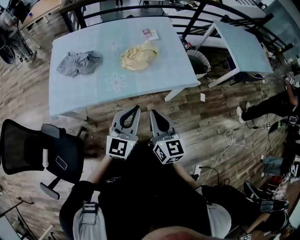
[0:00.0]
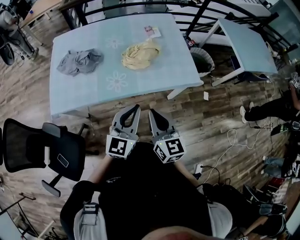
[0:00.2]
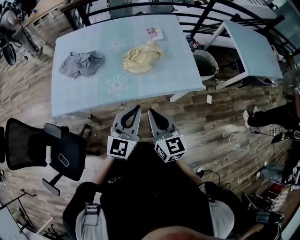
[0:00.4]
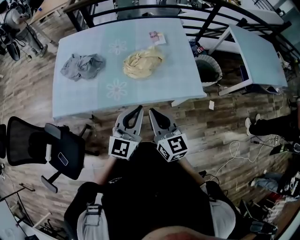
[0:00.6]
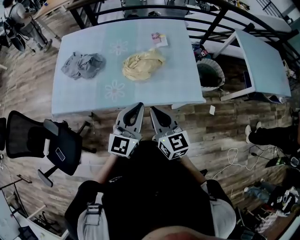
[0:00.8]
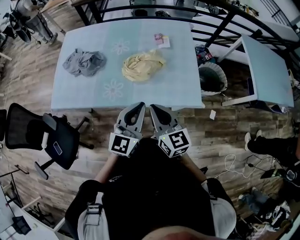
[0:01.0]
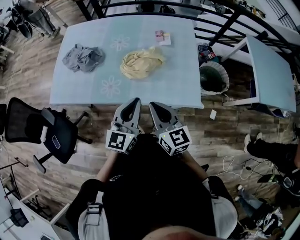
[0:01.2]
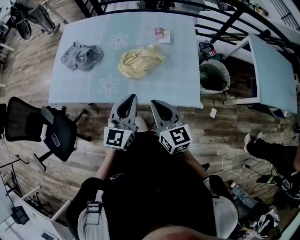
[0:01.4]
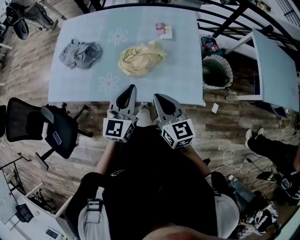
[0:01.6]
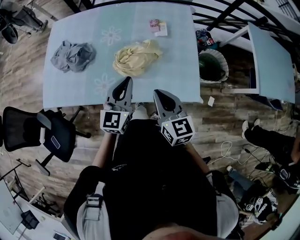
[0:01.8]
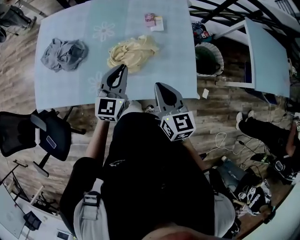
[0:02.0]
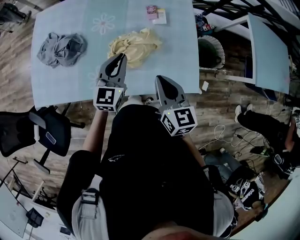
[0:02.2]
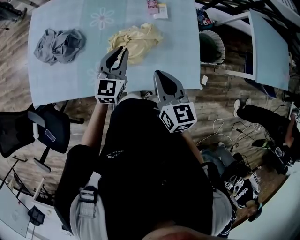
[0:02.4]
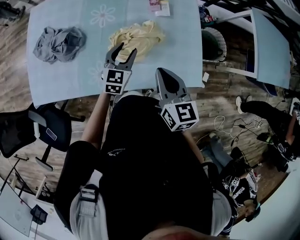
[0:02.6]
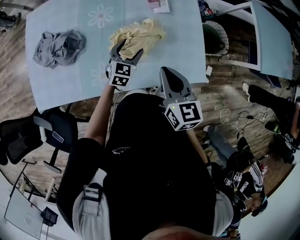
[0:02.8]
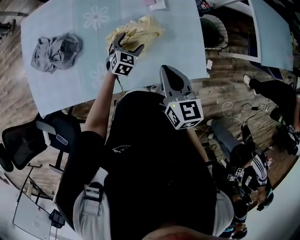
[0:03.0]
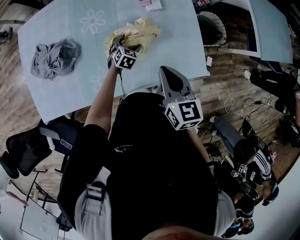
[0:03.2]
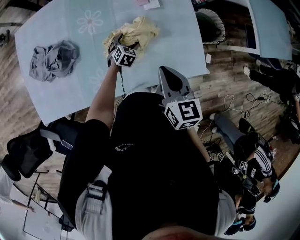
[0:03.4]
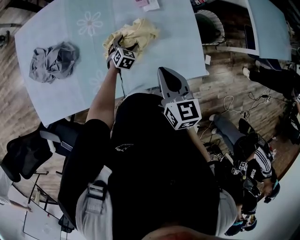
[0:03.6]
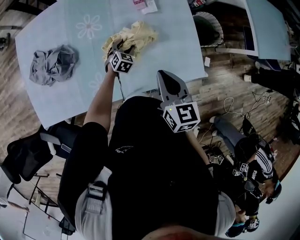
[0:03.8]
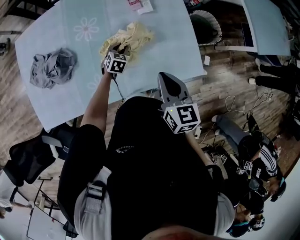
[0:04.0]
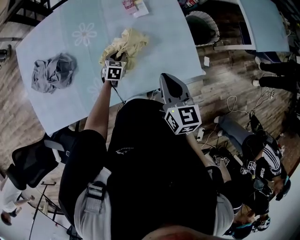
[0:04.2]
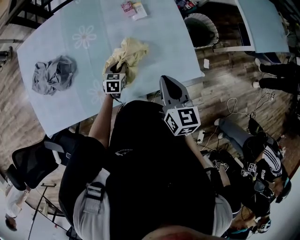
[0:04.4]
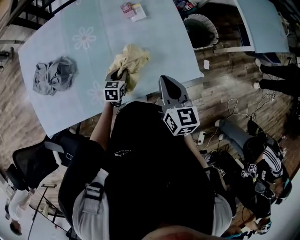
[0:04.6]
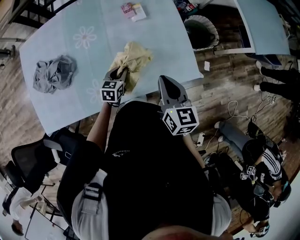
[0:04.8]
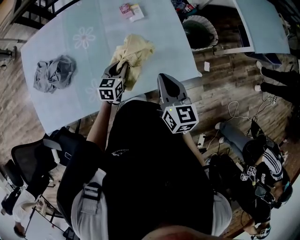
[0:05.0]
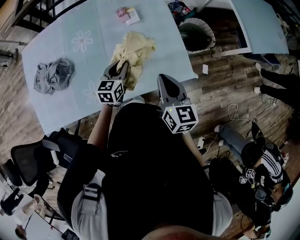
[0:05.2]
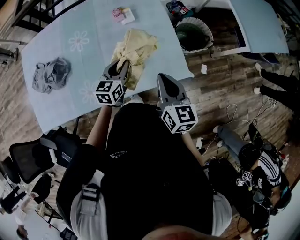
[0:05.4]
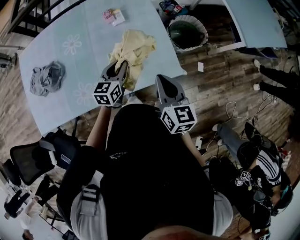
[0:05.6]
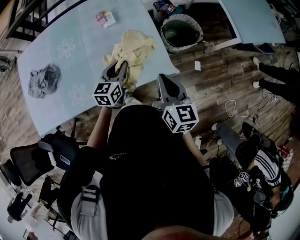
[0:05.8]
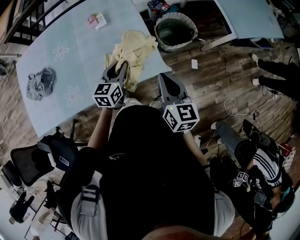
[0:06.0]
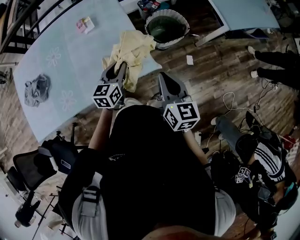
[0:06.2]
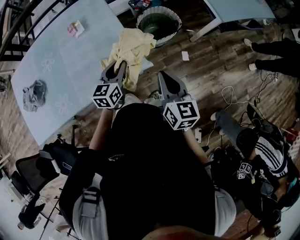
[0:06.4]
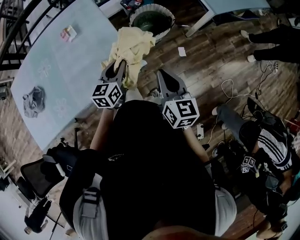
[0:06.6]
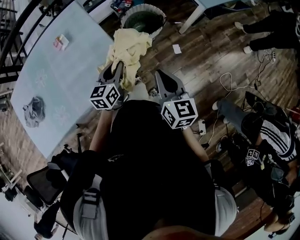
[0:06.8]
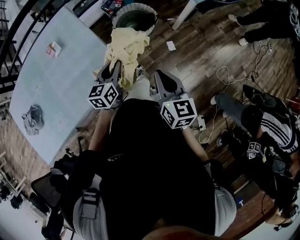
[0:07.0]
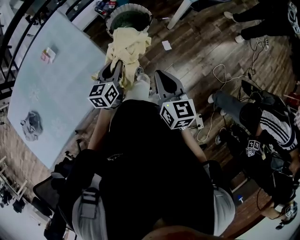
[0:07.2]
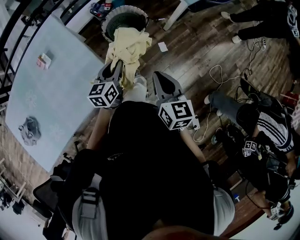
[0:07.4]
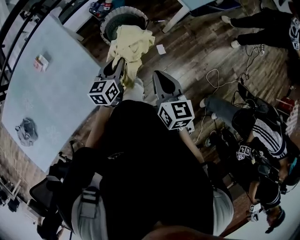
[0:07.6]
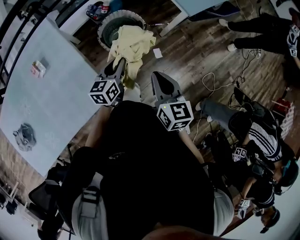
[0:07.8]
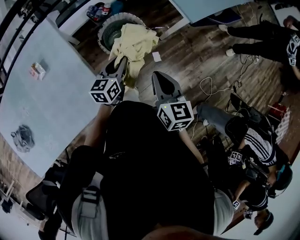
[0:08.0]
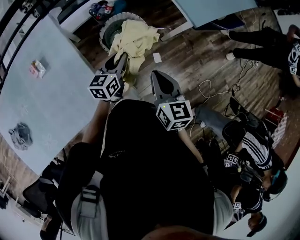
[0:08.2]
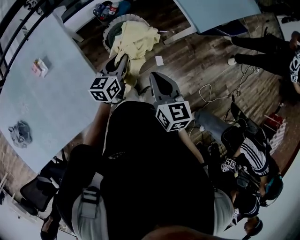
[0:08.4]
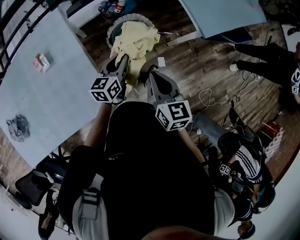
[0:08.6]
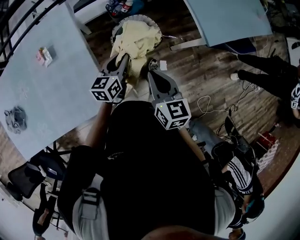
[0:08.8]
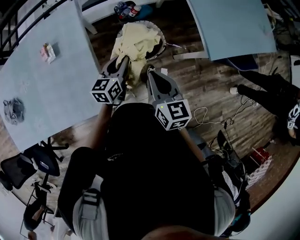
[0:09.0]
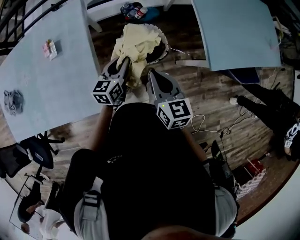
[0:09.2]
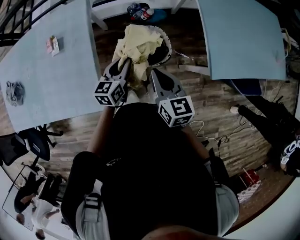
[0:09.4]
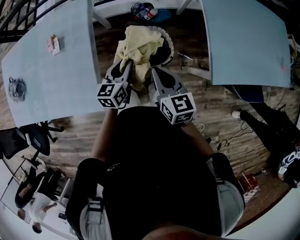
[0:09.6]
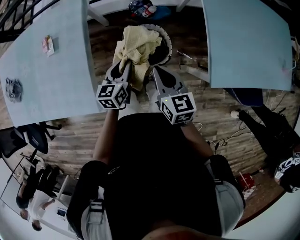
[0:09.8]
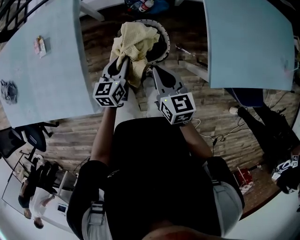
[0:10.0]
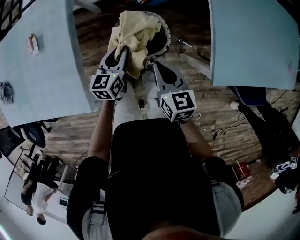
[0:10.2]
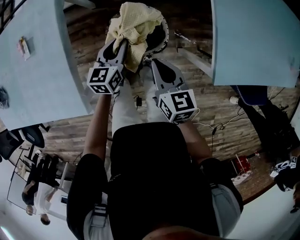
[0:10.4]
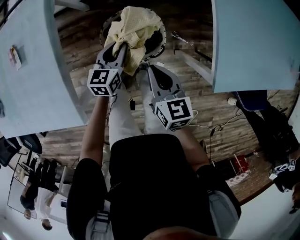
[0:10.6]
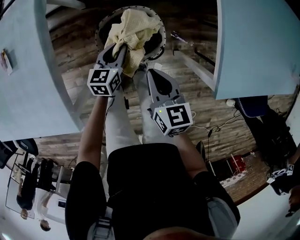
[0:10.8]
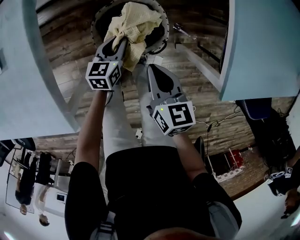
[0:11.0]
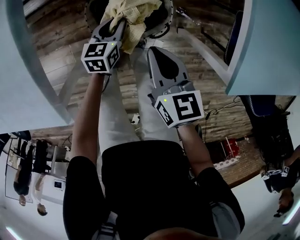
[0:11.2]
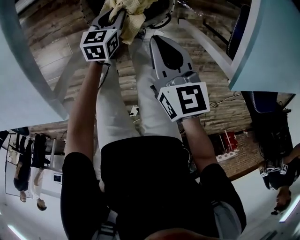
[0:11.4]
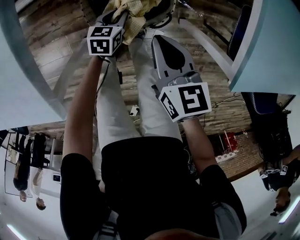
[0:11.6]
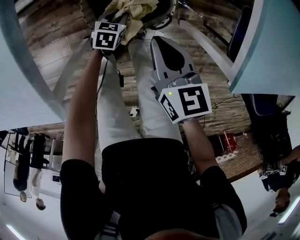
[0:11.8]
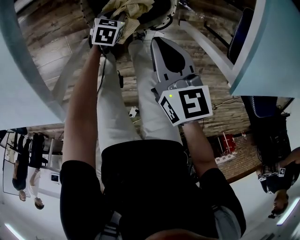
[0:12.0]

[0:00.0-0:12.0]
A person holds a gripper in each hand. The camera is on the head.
0:00.0 to 0:01.6: The two grippers go approximately 25 cm forward and to the right. The right gripper rotates approximately 30 degrees; the left gripper swivels roughly 20 degrees.
0:01.6 to 0:03.0: The right gripper is displaced forward by some 10 cm, and turns by about 20 degrees. The left gripper heads downward and forward, covering some 35 cm, points its fingers approximately 30 degrees further downward, and opens up.
0:03.0 to 0:04.4: The left gripper shifts some 5 cm downward and backward, and closes, while the right gripper is displaced to the right by about 5 cm.
0:04.4 to 0:06.0: The left gripper goes approximately 30 cm to the right and upward, and changes its angle by roughly 20 degrees, while the right gripper moves to the right, approximately 25 cm.
0:06.0 to 0:07.6: The right gripper shifts roughly 25 cm to the right. Meanwhile the left gripper moves to the right and forward, about 30 cm.
0:07.6 to 0:09.0: The two grippers go about 20 cm forward. The left gripper turns by about 20 degrees. The right gripper changes its angle by some 30 degrees.
0:09.0 to 0:10.4: The right gripper shifts roughly 25 cm downward, forward and to the right. Meanwhile the left gripper is displaced forward, downward and to the right by approximately 20 cm.
0:10.4 to 0:12.0: The left gripper heads downward, covering approximately 35 cm, and tips its fingers downward by approximately 30 degrees. The right gripper shifts approximately 15 cm downward.

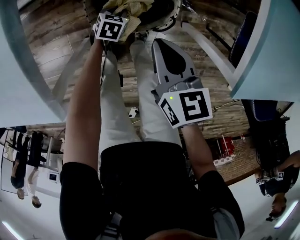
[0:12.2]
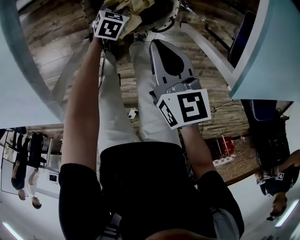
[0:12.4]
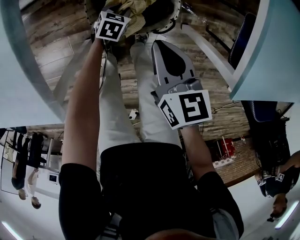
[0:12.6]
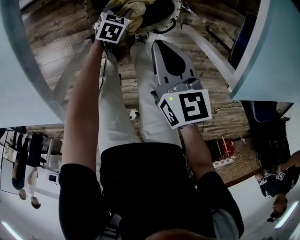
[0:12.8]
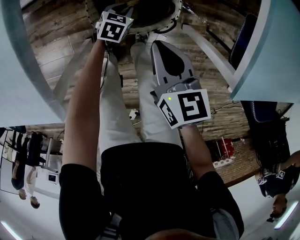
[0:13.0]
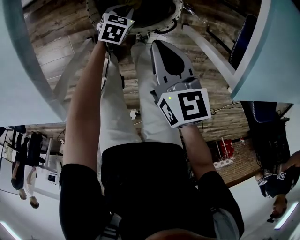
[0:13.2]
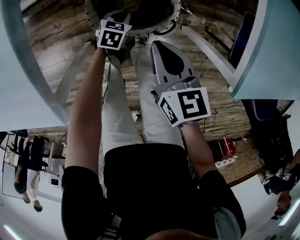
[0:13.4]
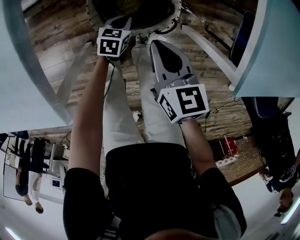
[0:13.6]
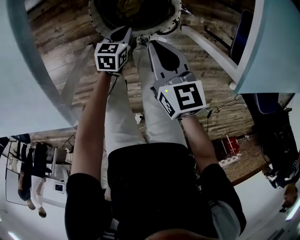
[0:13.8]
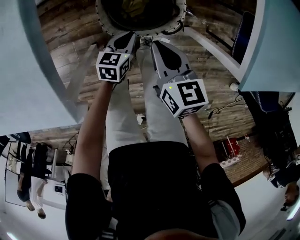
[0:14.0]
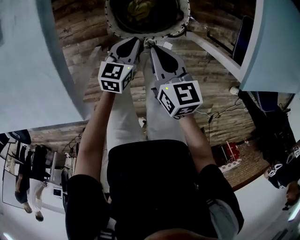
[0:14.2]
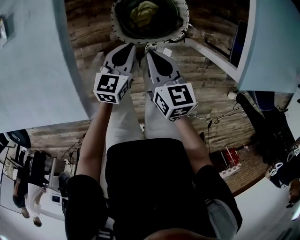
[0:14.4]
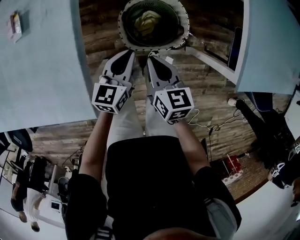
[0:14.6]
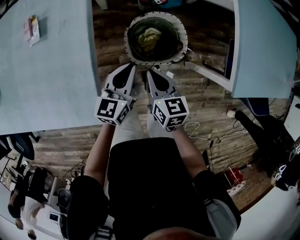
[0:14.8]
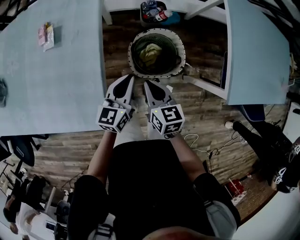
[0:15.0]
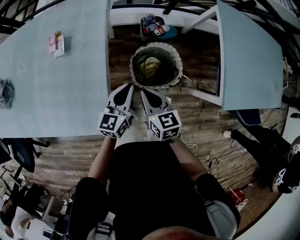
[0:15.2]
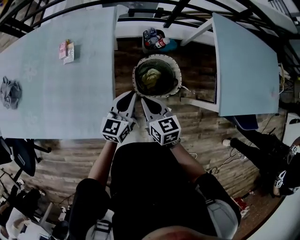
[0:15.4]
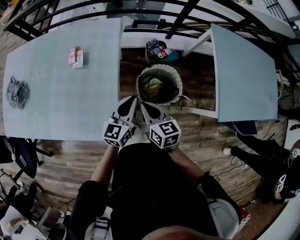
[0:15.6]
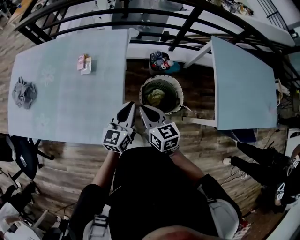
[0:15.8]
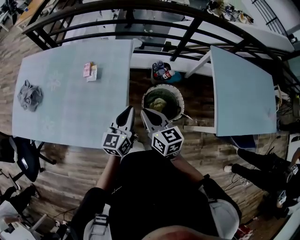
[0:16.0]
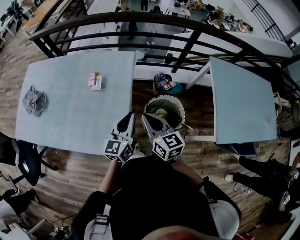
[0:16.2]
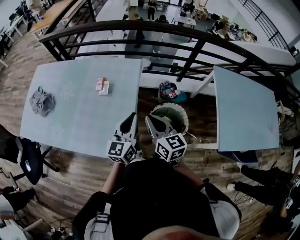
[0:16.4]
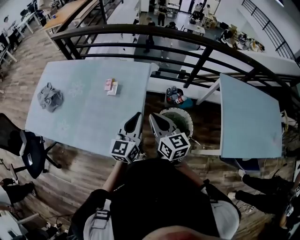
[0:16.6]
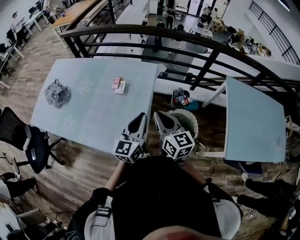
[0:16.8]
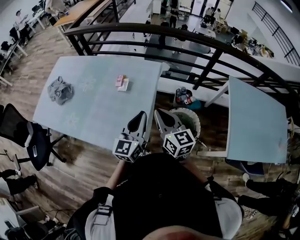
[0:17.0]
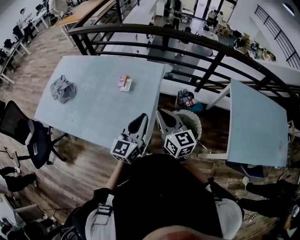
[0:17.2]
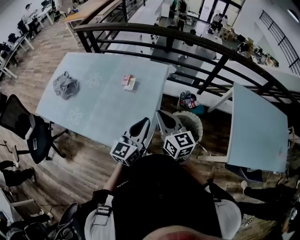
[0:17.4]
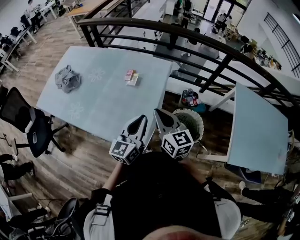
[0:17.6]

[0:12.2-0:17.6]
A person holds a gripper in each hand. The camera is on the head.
0:12.2 to 0:13.6: The grippers make only small movements.
0:13.6 to 0:15.0: The left gripper shifts approximately 40 cm upward and to the left, and points its fingers roughly 40 degrees further upward. Meanwhile the right gripper moves to the left and upward, approximately 20 cm.
0:15.0 to 0:16.2: The right gripper goes some 25 cm upward, and turns by about 20 degrees. The left gripper moves upward and to the left, some 25 cm.
0:16.2 to 0:17.6: The right gripper shifts approximately 10 cm to the left and upward, while the left gripper travels to the left, backward and upward by roughly 10 cm.

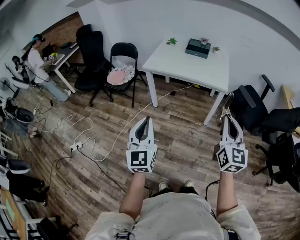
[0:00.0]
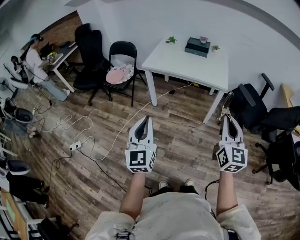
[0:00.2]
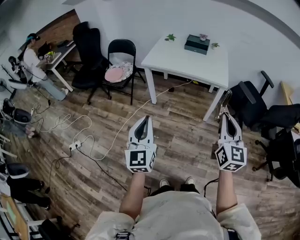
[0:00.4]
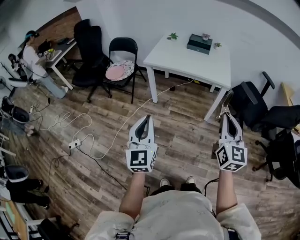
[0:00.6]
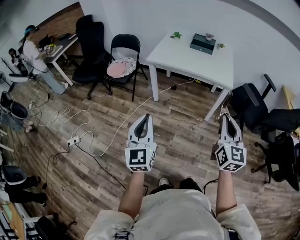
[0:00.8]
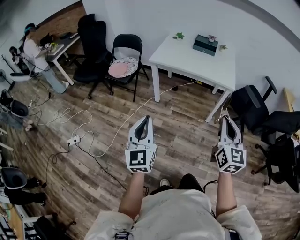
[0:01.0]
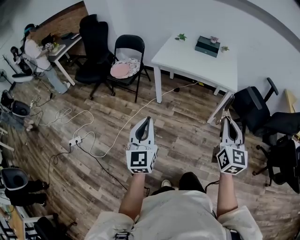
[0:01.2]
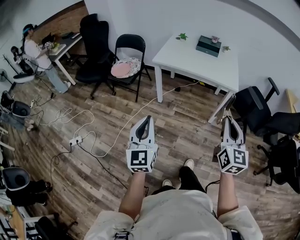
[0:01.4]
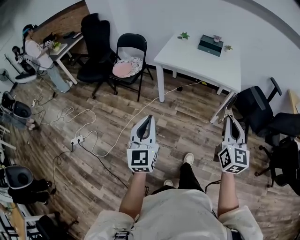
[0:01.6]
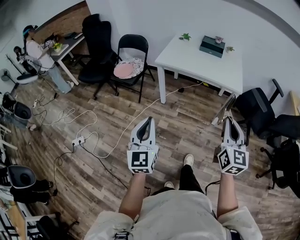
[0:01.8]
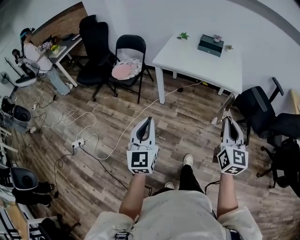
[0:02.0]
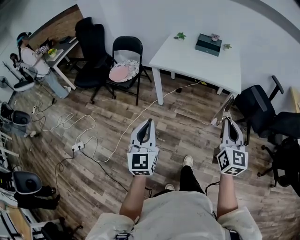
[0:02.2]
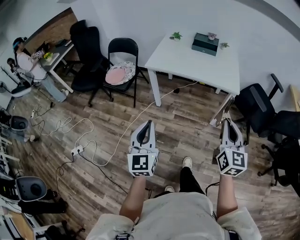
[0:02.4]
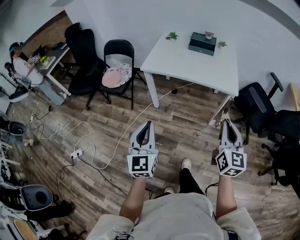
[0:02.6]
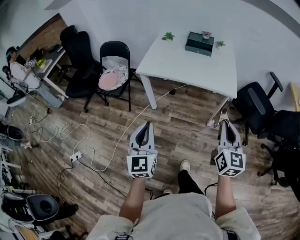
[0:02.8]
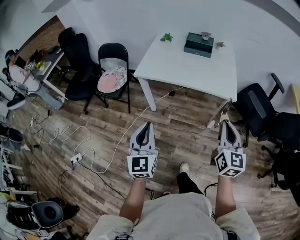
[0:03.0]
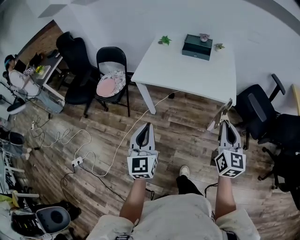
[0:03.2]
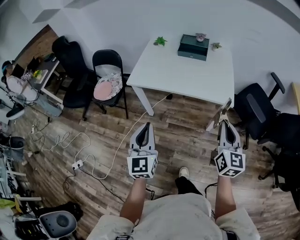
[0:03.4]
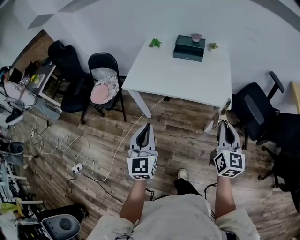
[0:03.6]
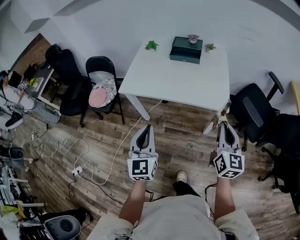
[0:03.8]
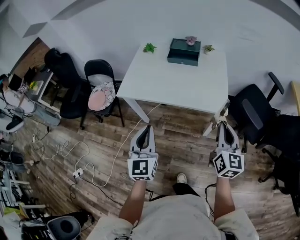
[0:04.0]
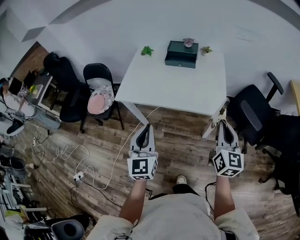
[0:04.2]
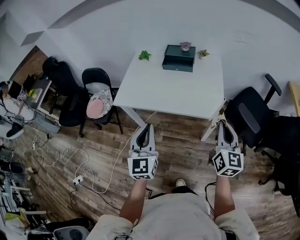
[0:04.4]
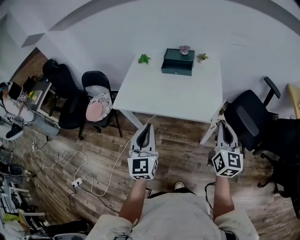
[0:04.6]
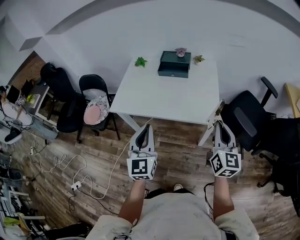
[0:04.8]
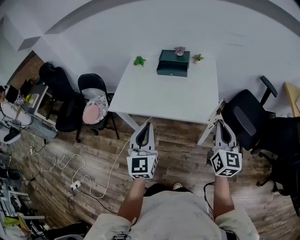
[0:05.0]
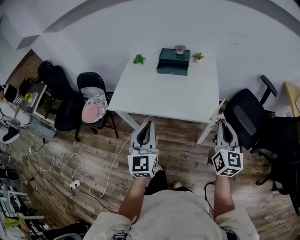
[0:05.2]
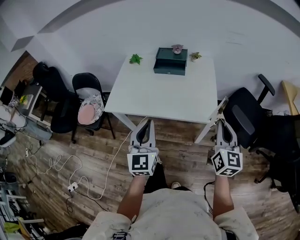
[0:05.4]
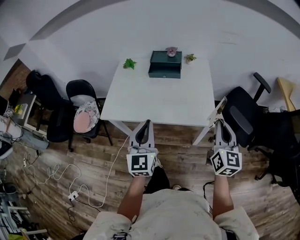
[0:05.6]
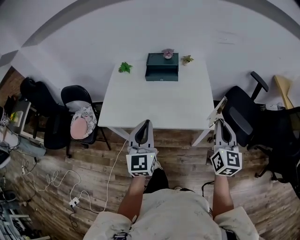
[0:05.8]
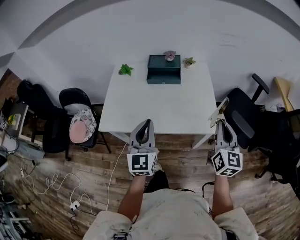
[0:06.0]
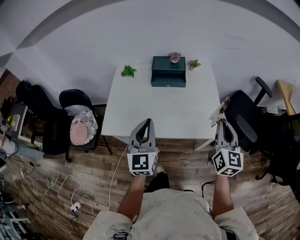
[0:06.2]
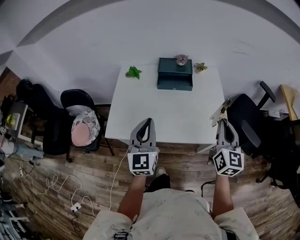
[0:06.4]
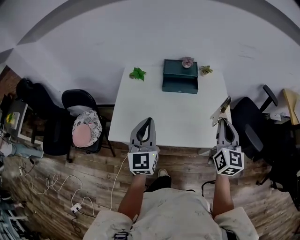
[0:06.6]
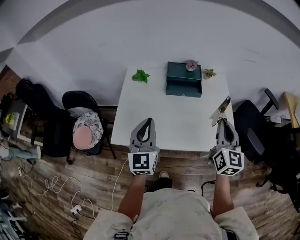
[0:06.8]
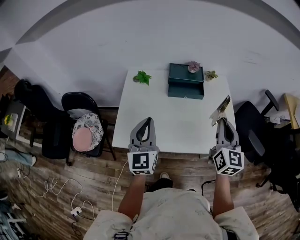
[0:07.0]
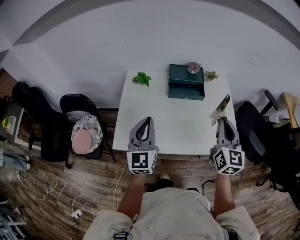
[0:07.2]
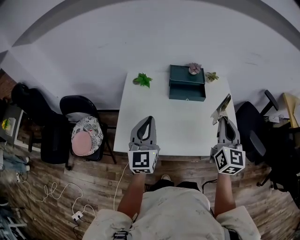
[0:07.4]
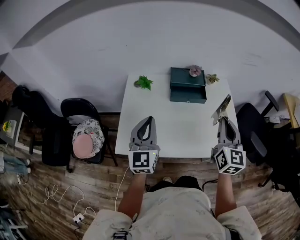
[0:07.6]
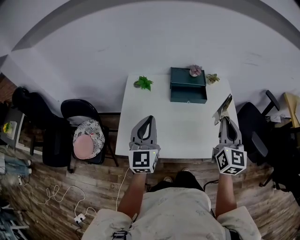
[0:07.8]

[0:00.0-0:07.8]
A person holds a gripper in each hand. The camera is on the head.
0:00.0 to 0:01.6: Both grippers move to the left, some 10 cm.
0:01.6 to 0:03.2: Both grippers move forward and to the right, some 25 cm.
0:03.2 to 0:04.6: Both grippers move forward and to the right, roughly 20 cm.
0:04.6 to 0:06.2: The left gripper travels forward by roughly 20 cm. Meanwhile the right gripper shifts roughly 15 cm forward and to the left.
0:06.2 to 0:07.8: Both grippers move to the left and forward, about 20 cm.
